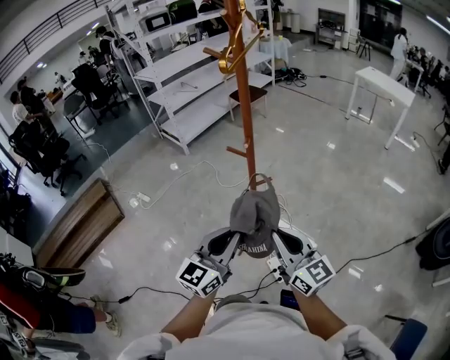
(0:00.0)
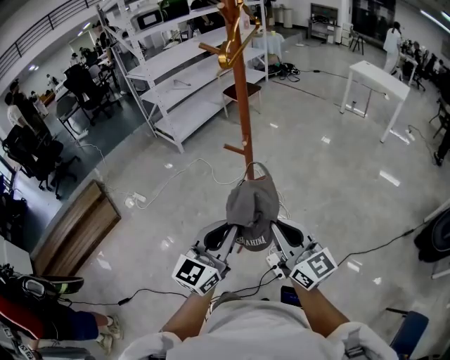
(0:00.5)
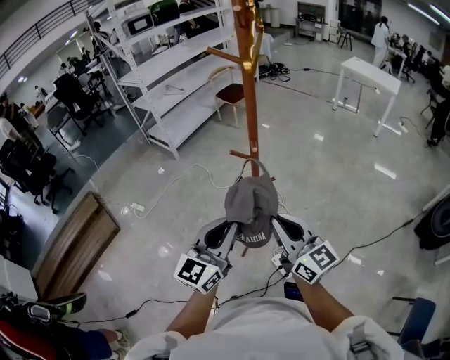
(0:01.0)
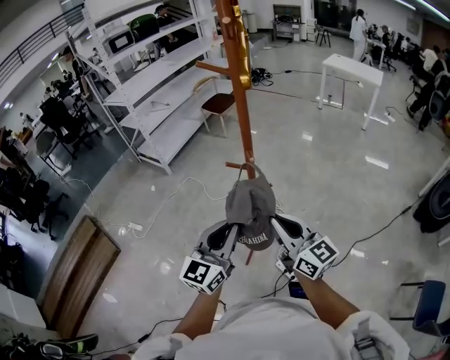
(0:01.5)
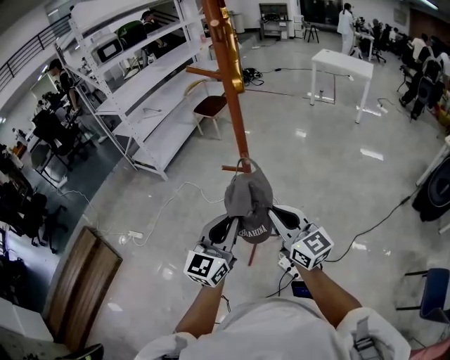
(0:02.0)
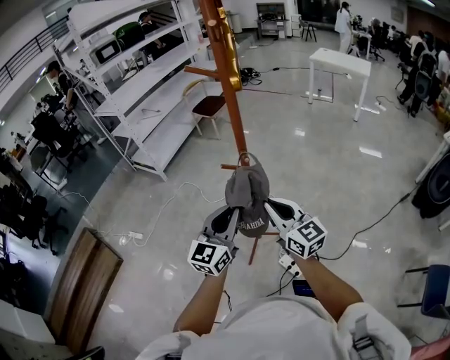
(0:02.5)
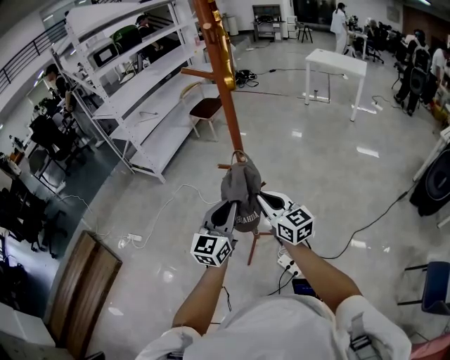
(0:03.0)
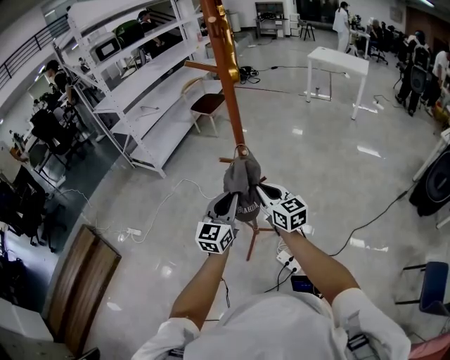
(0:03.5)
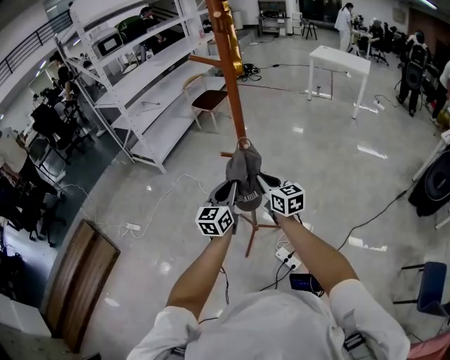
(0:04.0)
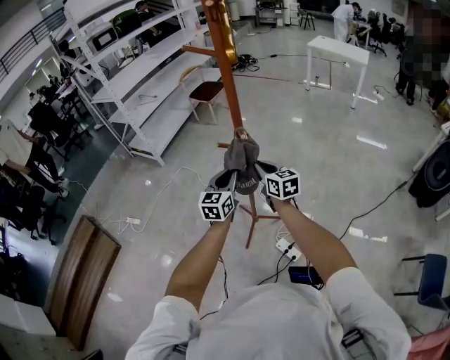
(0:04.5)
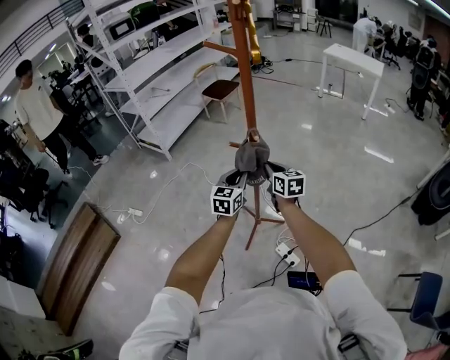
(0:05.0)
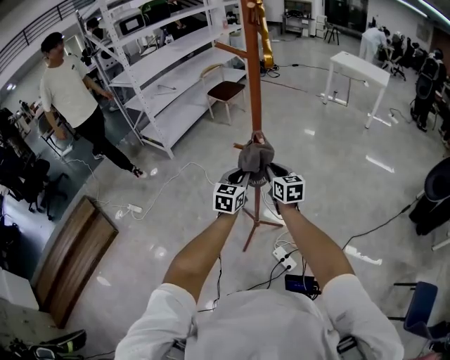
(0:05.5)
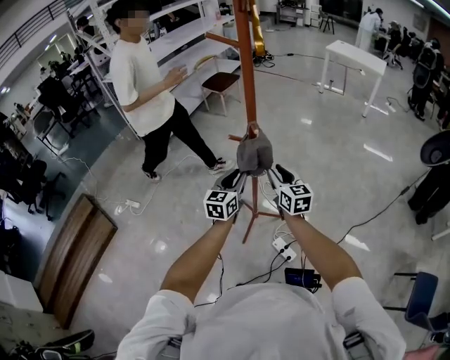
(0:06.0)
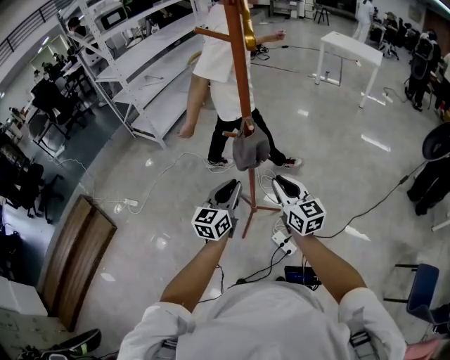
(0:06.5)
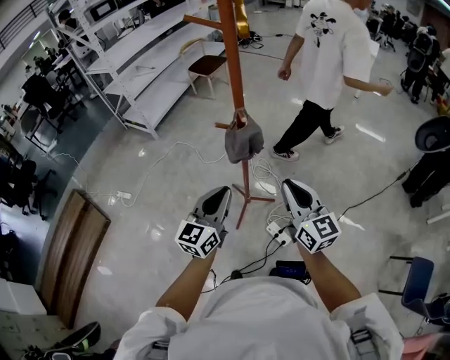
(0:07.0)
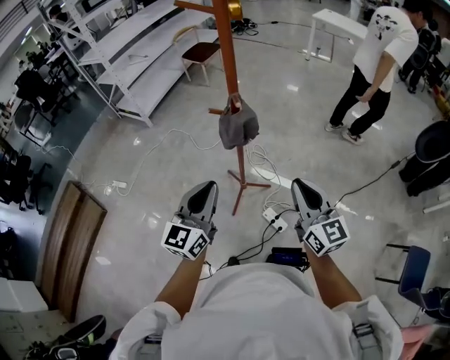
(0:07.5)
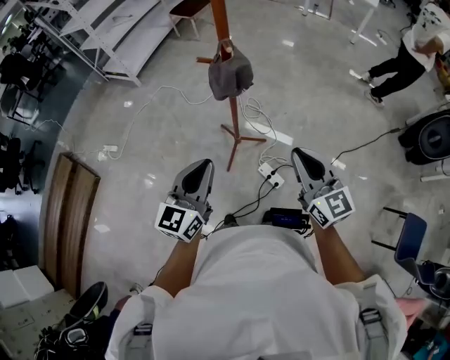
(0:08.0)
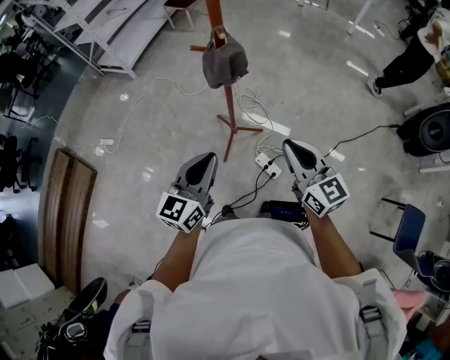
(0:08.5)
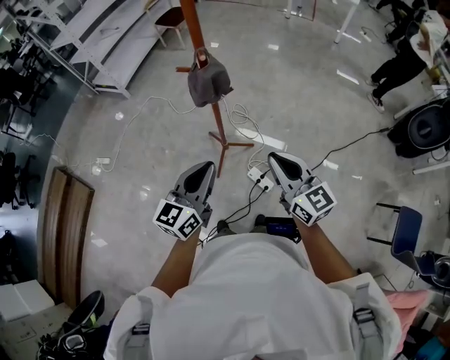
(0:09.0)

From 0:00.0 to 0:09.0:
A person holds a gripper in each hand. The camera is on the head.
From 0:00.0 to 0:02.0: Both grippers move forward and to the left, roughly 10 cm.
From 0:02.0 to 0:04.5: The grippers both shift forward and downward by approximately 15 cm. The right gripper changes its angle by roughly 20 degrees.
From 0:04.5 to 0:07.0: The right gripper goes approximately 20 cm backward, upward and to the right. The left gripper shifts about 10 cm backward.
From 0:07.0 to 0:09.0: The two grippers go roughly 10 cm backward. The left gripper travels downward and back again, some 5 cm each way.

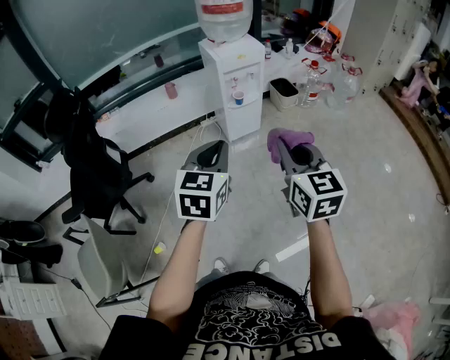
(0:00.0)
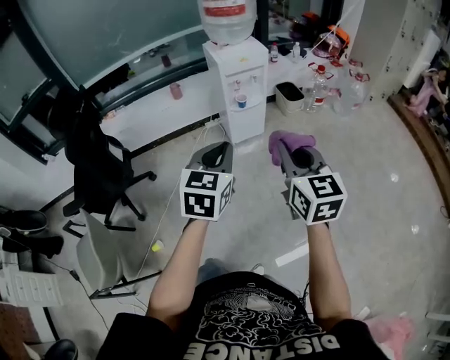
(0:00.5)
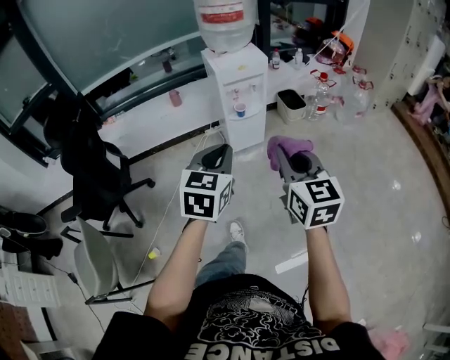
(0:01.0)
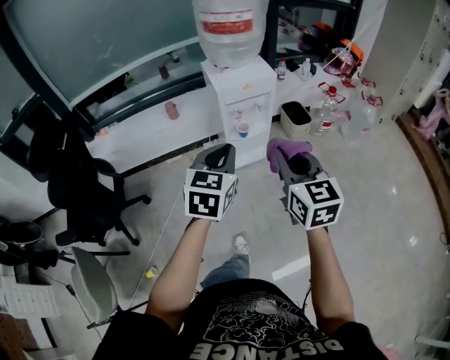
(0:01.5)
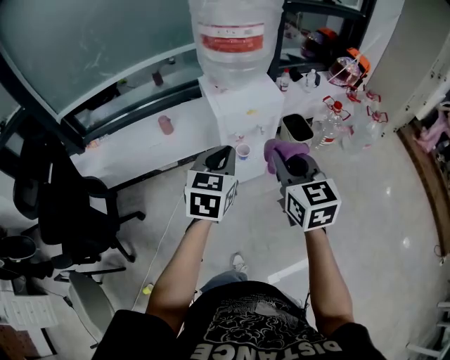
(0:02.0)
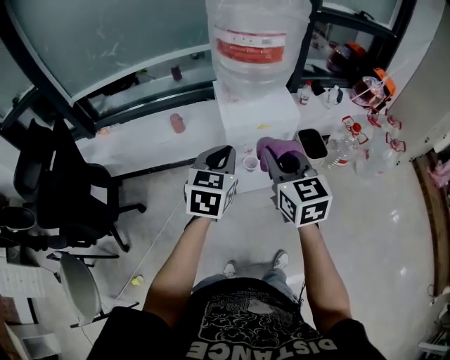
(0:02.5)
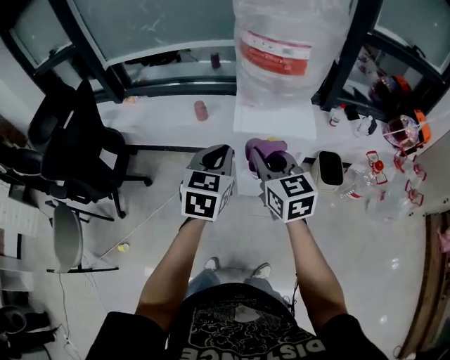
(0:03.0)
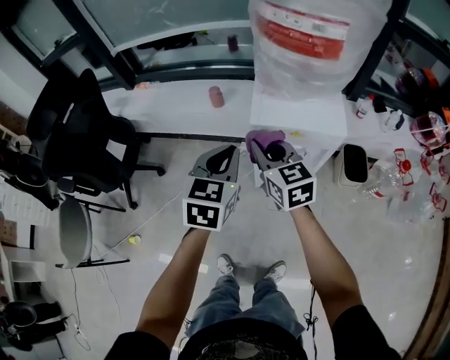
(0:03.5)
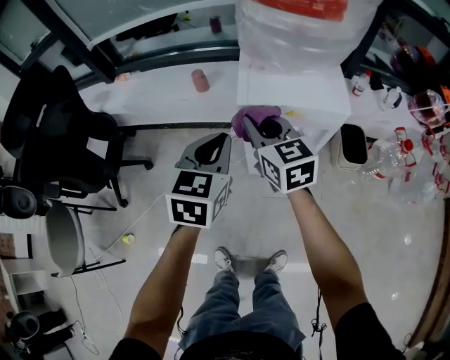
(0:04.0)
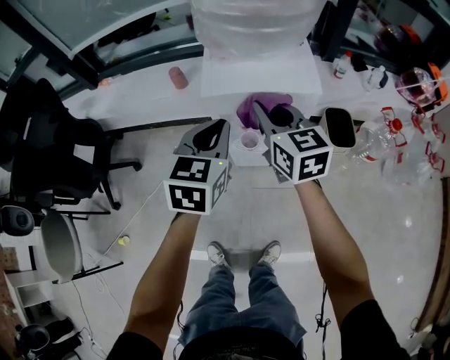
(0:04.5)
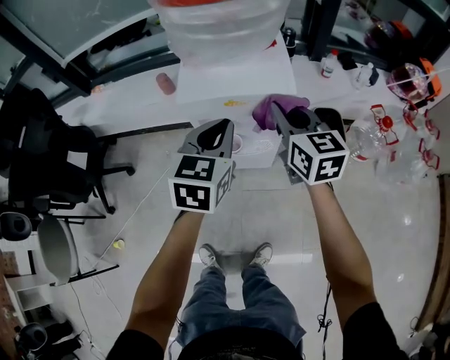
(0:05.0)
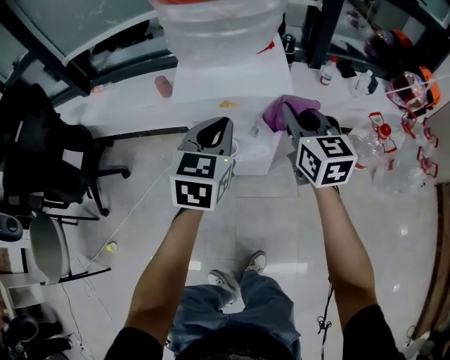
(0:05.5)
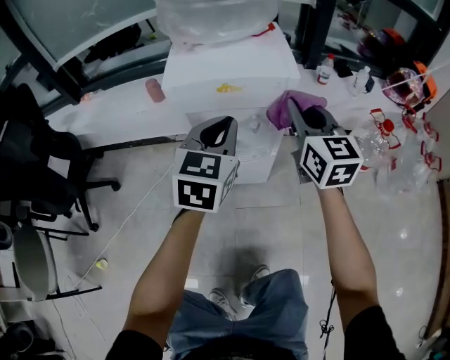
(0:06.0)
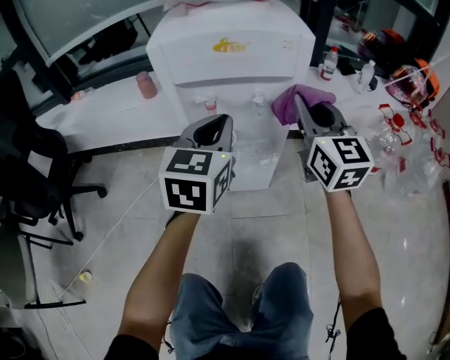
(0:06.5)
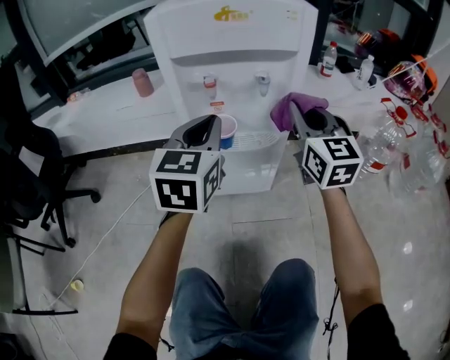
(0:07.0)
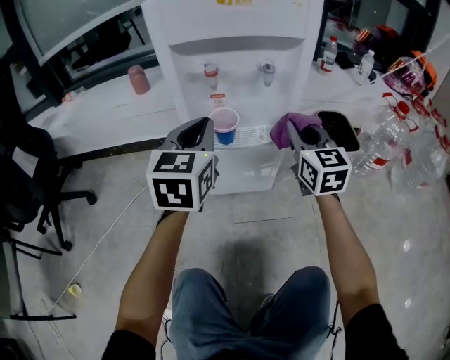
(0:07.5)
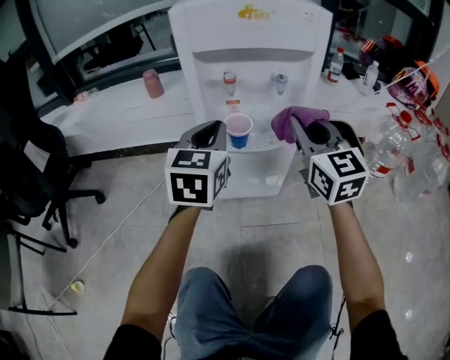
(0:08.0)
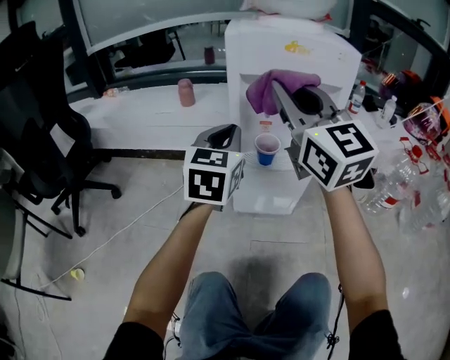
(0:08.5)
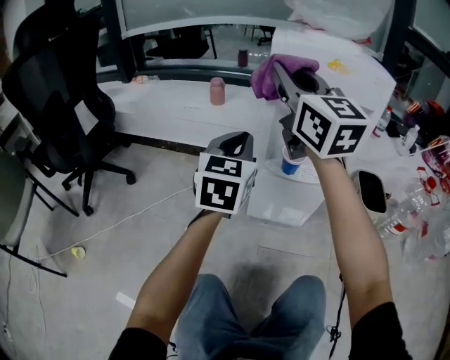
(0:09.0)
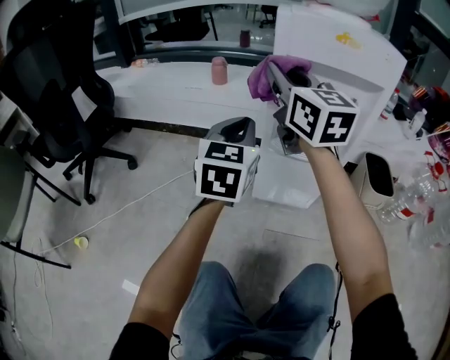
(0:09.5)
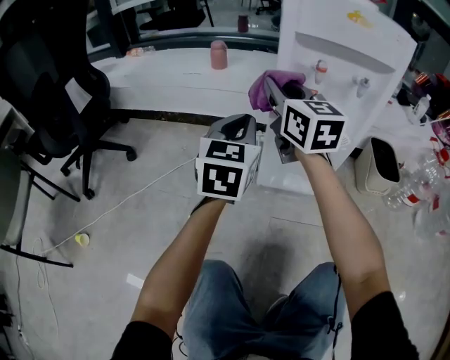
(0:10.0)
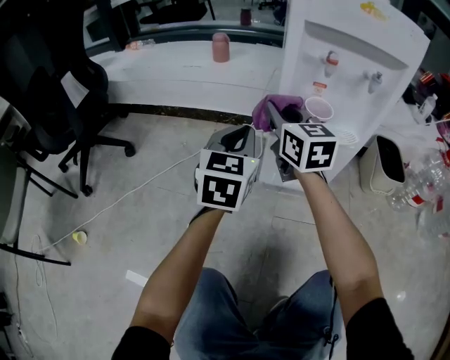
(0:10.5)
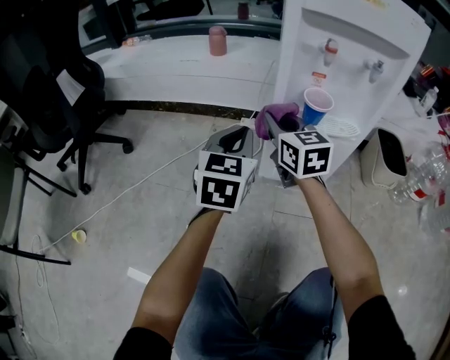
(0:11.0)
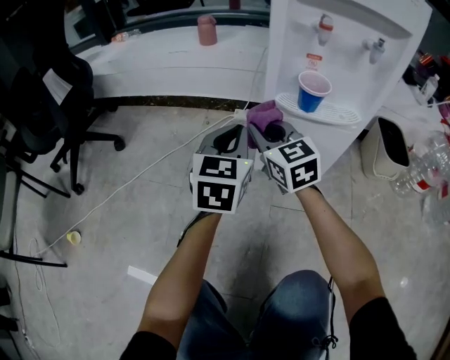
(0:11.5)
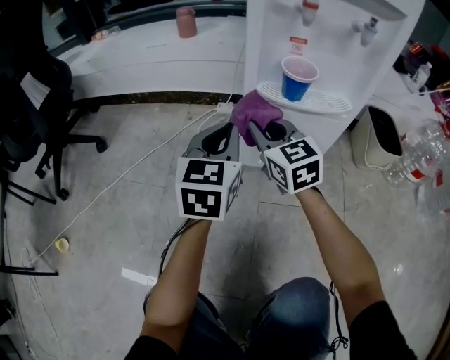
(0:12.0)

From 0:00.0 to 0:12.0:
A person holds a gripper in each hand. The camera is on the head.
From 0:00.0 to 0:02.0: Both grippers move forward, roughly 35 cm.
From 0:02.0 to 0:04.0: The left gripper ends up about 15 cm from where it was, and swivels some 30 degrees. Meanwhile the right gripper moves roughly 30 cm, and rotates about 30 degrees.
From 0:04.0 to 0:06.0: The right gripper moves to the right, roughly 25 cm, and turns by some 20 degrees. The left gripper travels to the right and downward by approximately 20 cm.
From 0:06.0 to 0:08.0: The right gripper is displaced downward by about 15 cm; the left gripper heads downward and to the left, covering approximately 20 cm.
From 0:08.0 to 0:10.0: The right gripper travels to the left by roughly 20 cm; the left gripper moves to the left, roughly 10 cm.
From 0:10.0 to 0:12.0: The left gripper travels downward by some 15 cm; the right gripper shifts roughly 25 cm downward.

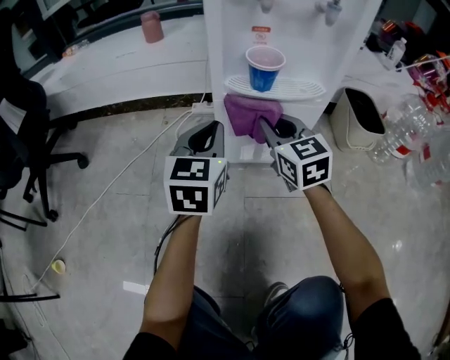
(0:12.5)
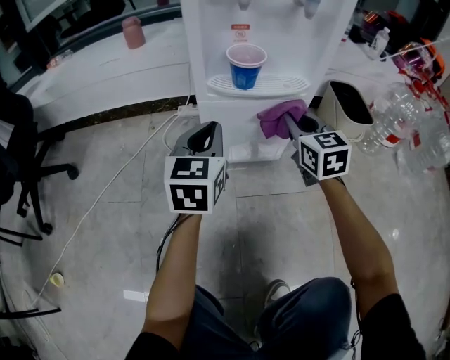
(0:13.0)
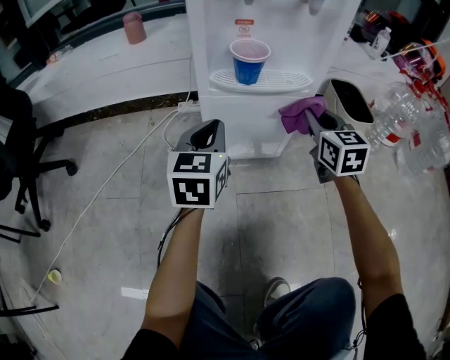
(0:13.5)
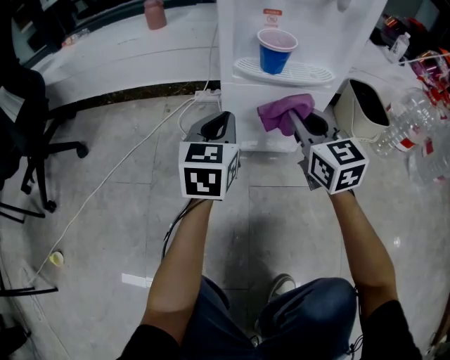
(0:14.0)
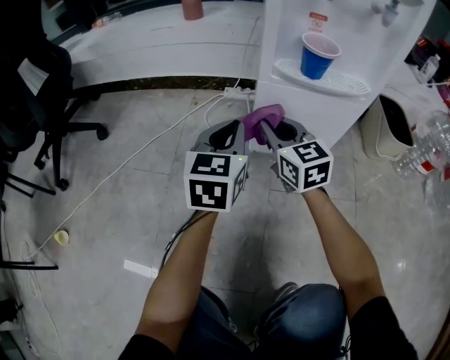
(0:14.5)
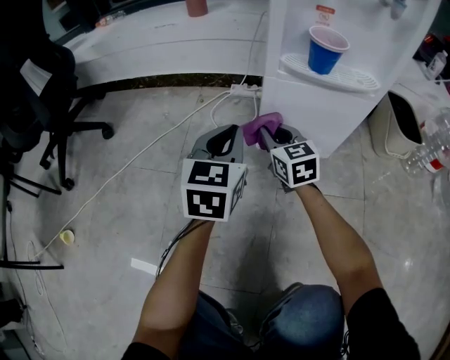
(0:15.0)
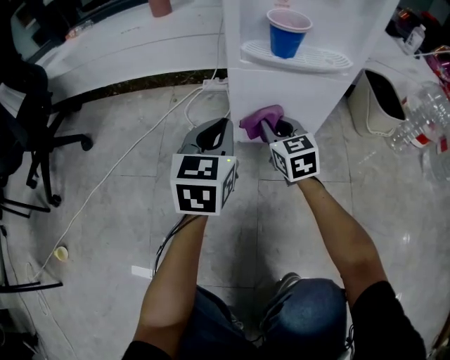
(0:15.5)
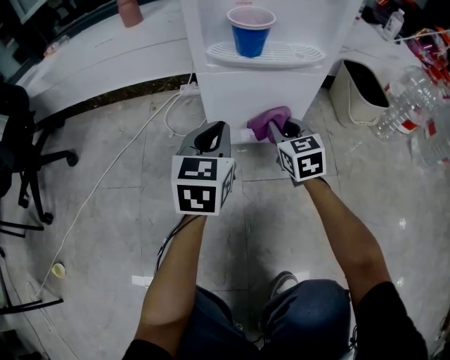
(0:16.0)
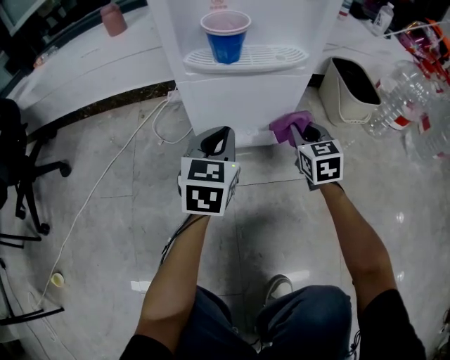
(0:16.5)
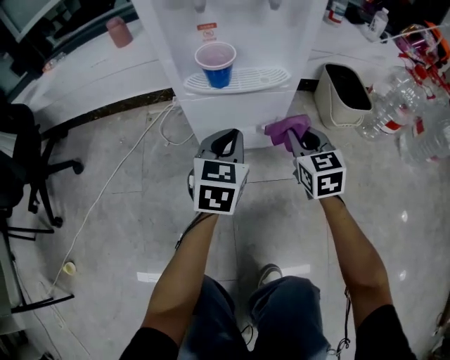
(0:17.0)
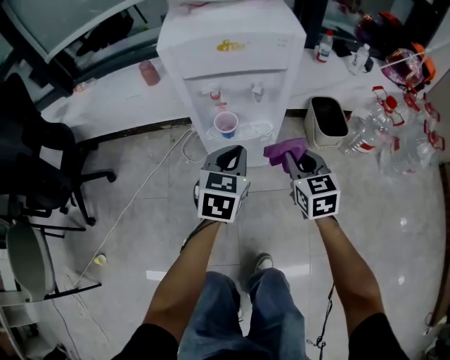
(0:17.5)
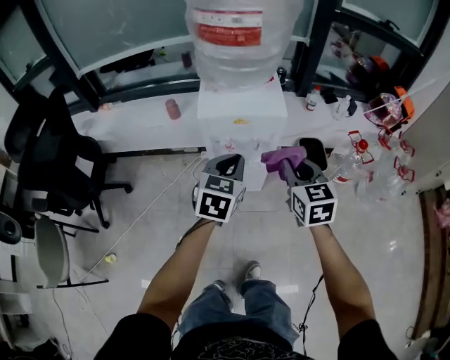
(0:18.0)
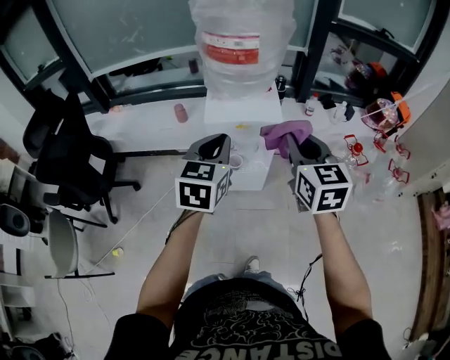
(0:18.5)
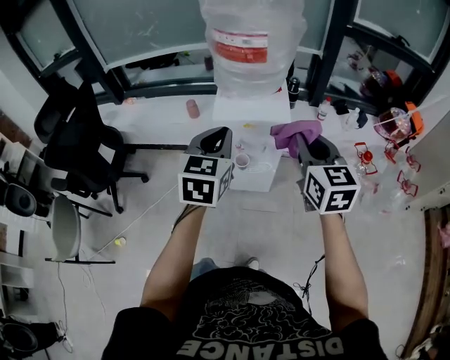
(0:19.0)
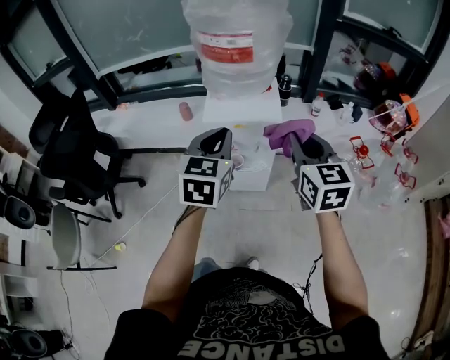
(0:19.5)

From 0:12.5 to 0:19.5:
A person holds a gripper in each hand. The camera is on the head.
From 0:12.5 to 0:14.5: The right gripper moves to the left and downward, approximately 10 cm, while the left gripper changes place by approximately 5 cm.
From 0:14.5 to 0:16.0: The right gripper heads to the right and downward, covering about 20 cm, and changes its angle by roughly 20 degrees, while the left gripper goes roughly 10 cm to the right.
From 0:16.0 to 0:17.5: The two grippers go some 30 cm upward.
From 0:17.5 to 0:19.5: The grippers both shift upward by some 40 cm.
